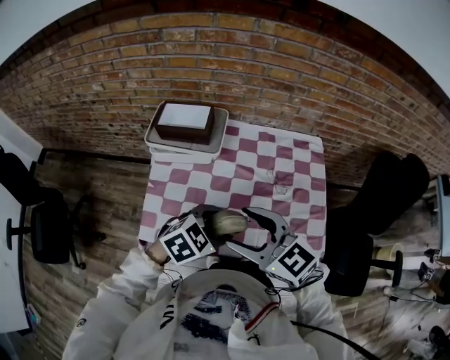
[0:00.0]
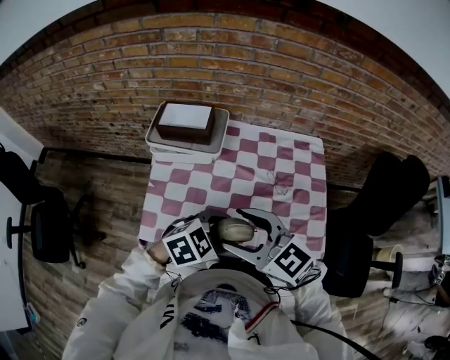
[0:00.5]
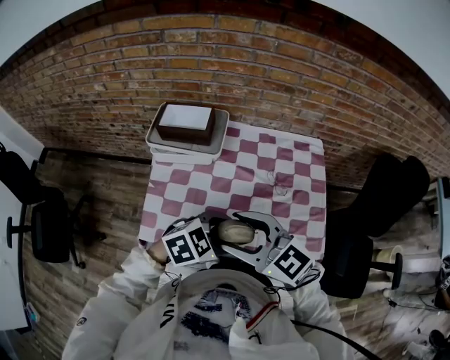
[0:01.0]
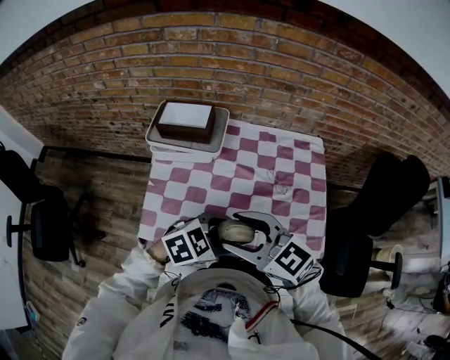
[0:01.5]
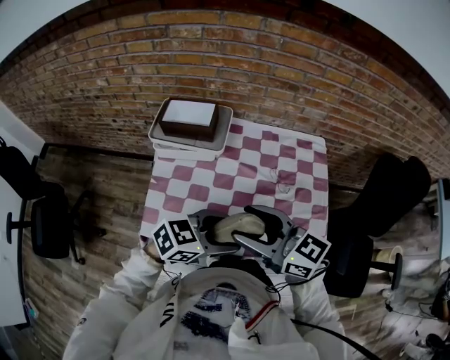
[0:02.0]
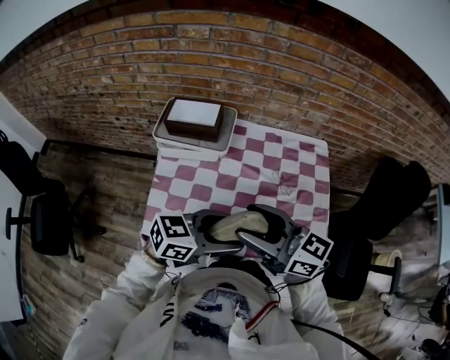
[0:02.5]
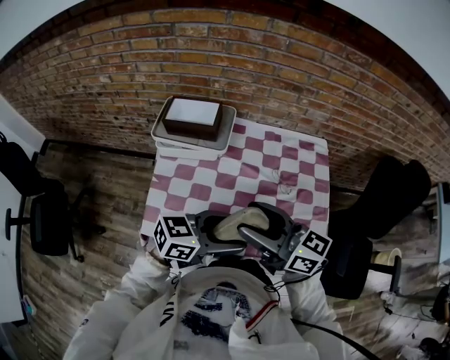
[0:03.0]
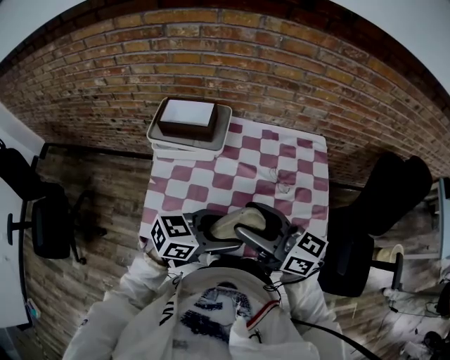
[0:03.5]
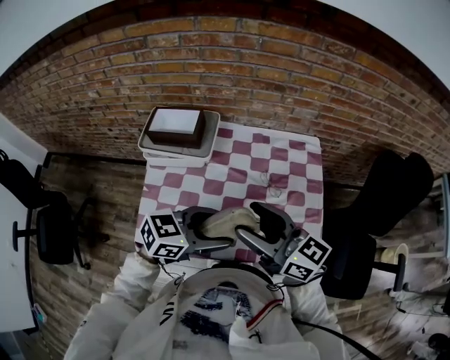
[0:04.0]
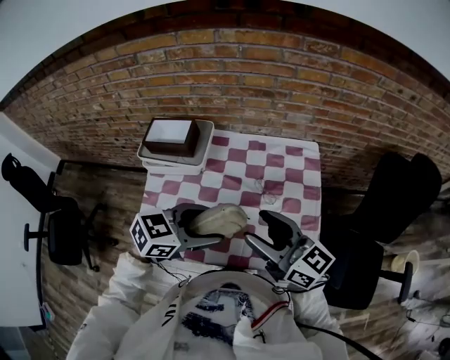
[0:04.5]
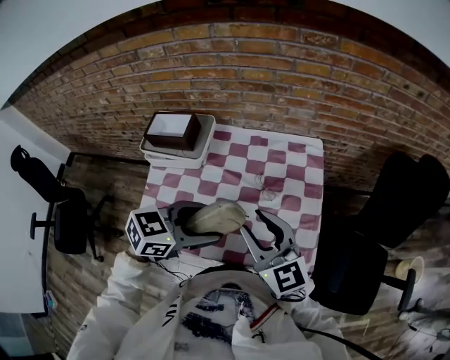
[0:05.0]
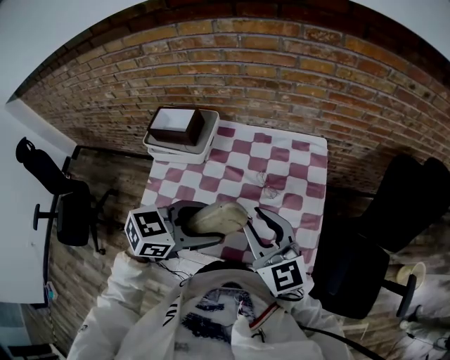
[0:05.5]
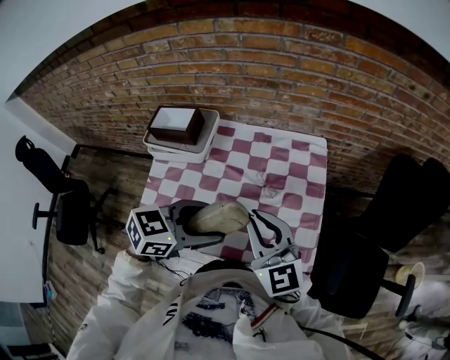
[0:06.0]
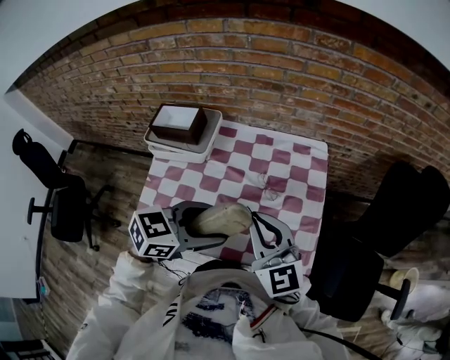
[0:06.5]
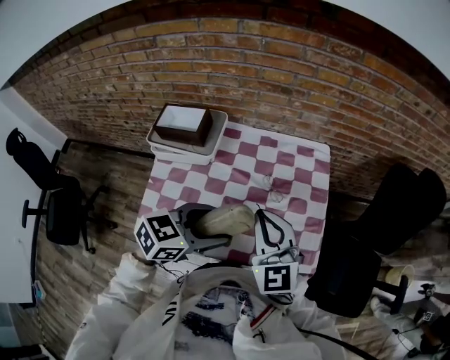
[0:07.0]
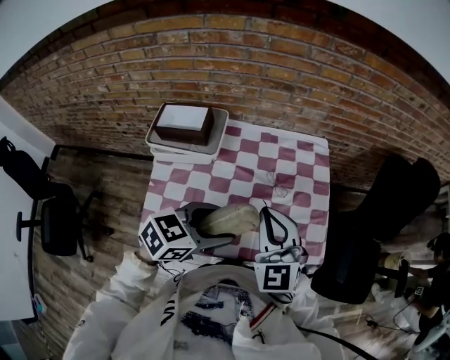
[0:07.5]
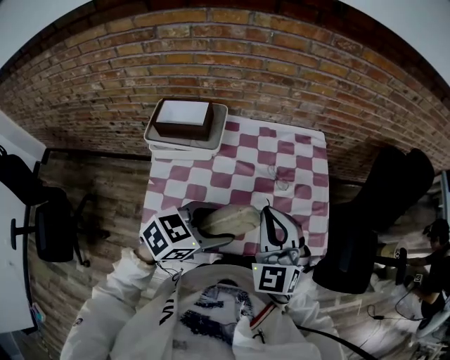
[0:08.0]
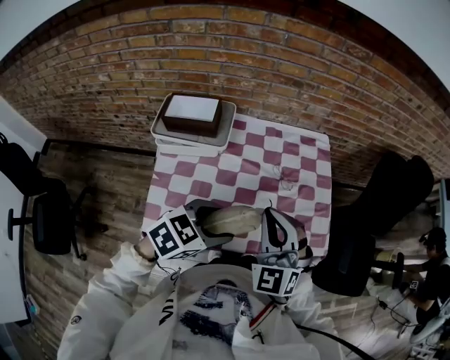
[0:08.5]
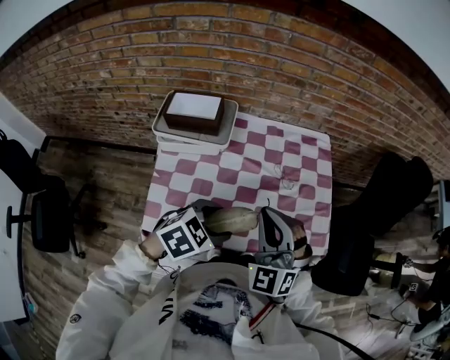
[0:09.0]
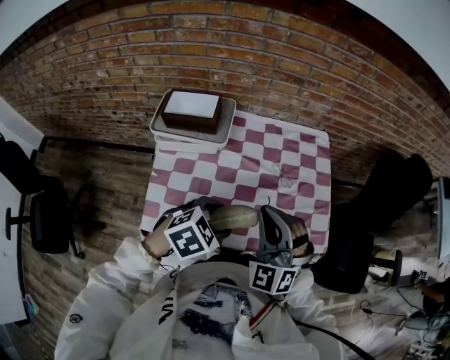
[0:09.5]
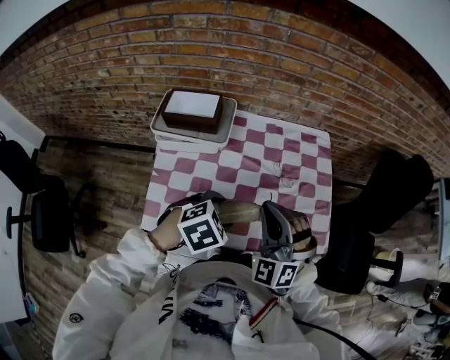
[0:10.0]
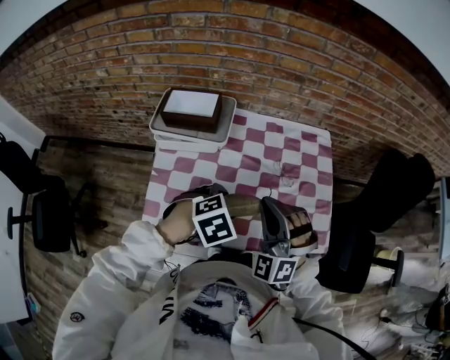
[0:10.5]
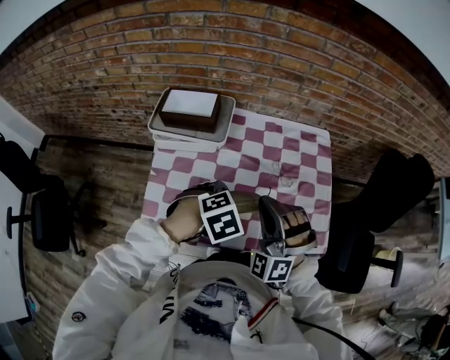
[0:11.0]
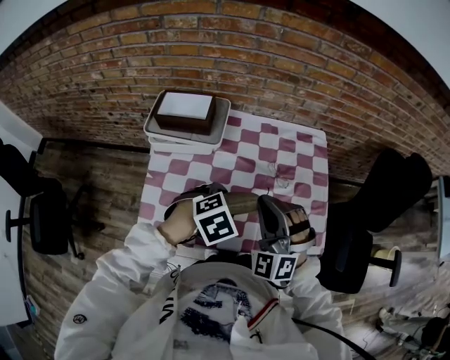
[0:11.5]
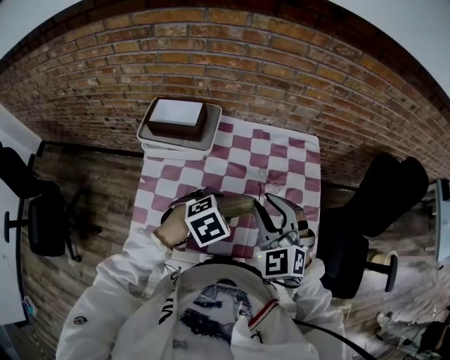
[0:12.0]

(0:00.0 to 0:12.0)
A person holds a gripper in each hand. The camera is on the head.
0:00.0 - 0:02.0: The left gripper changes place by roughly 5 cm, and rotates roughly 30 degrees.
0:02.0 - 0:04.0: The right gripper shifts by some 10 cm, while the left gripper ends up some 5 cm from where it was.
0:04.0 - 0:06.0: The left gripper changes place by some 10 cm, while the right gripper moves approximately 10 cm, swivels about 30 degrees, and closes its fingers.
0:06.0 - 0:08.0: The right gripper travels to the left by roughly 10 cm, and rotates approximately 40 degrees; the left gripper heads to the left and backward, covering approximately 10 cm.
0:08.0 - 0:10.0: The right gripper swivels roughly 30 degrees. The left gripper heads downward, covering approximately 5 cm, and turns by approximately 30 degrees.
0:10.0 - 0:12.0: Both grippers travel together forward, some 5 cm. The right gripper swivels approximately 20 degrees.

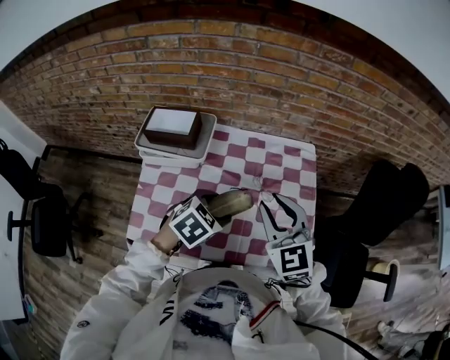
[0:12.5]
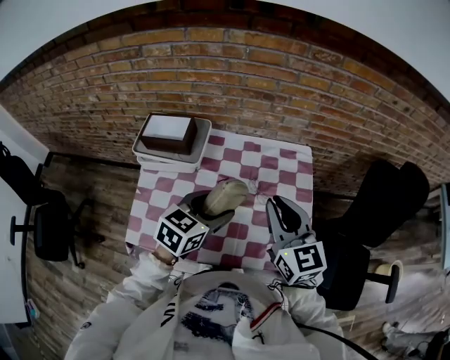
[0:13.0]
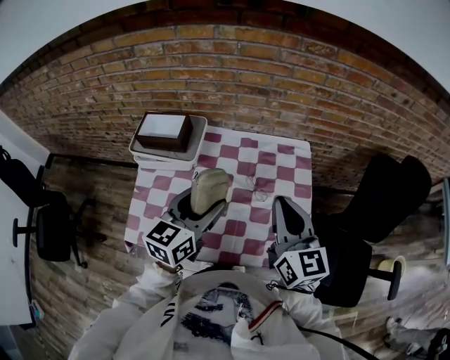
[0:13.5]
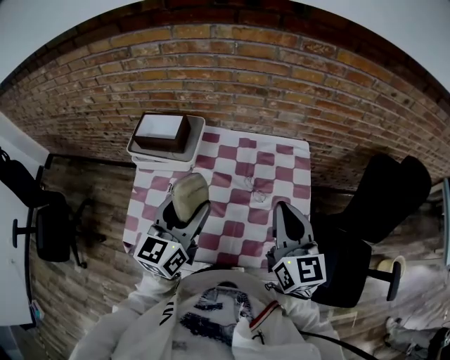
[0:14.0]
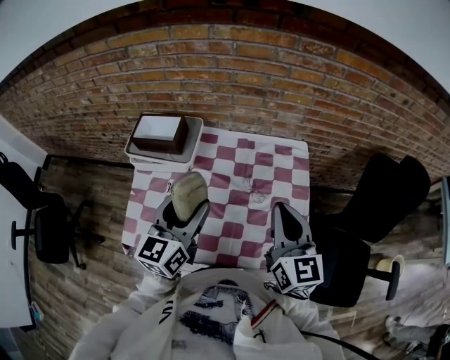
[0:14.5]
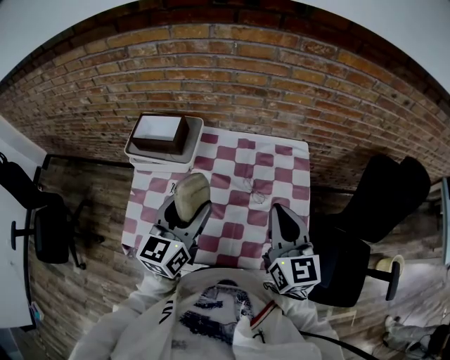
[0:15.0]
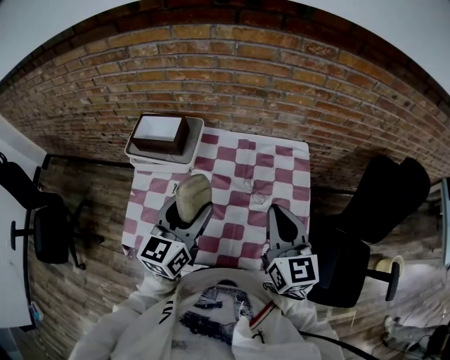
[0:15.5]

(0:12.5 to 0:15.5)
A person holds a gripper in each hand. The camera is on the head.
0:12.5 - 0:14.0: The left gripper shifts approximately 10 cm upward, and tilts its fingers about 50 degrees upward; the right gripper goes about 10 cm to the right, and rotates some 30 degrees.
0:14.0 - 0:15.5: The grippers make only small movements.

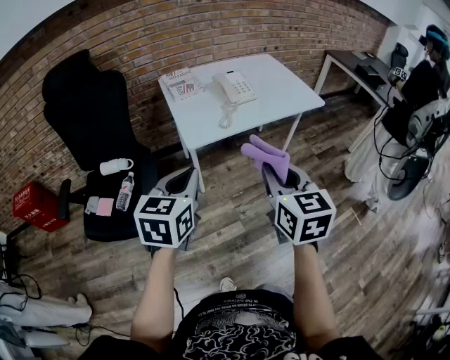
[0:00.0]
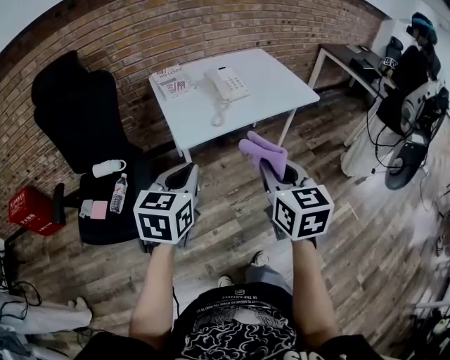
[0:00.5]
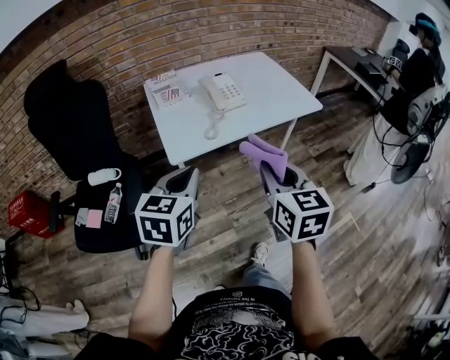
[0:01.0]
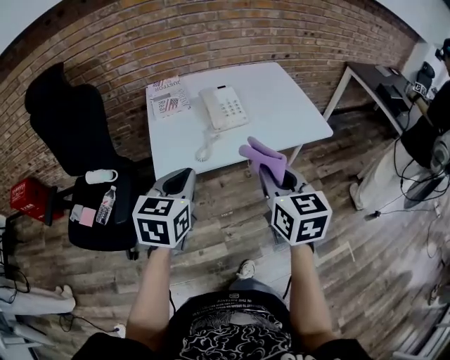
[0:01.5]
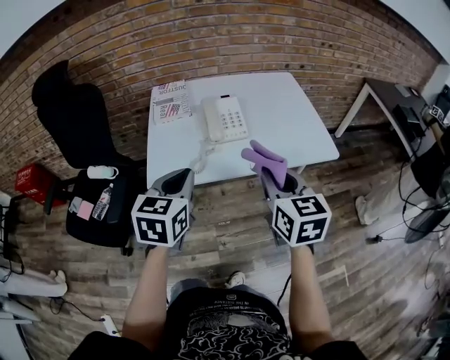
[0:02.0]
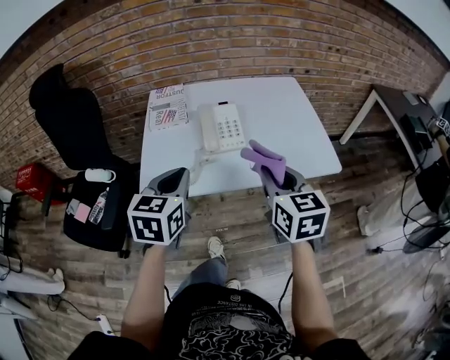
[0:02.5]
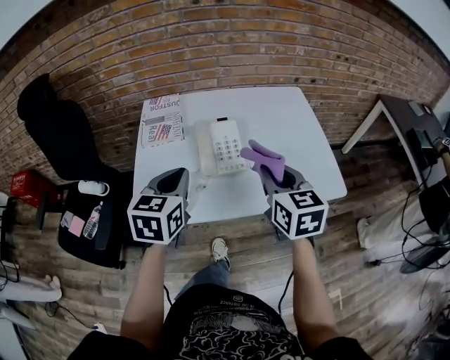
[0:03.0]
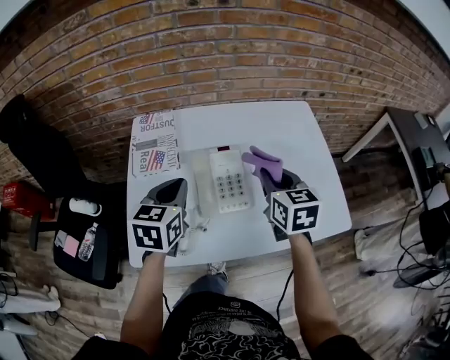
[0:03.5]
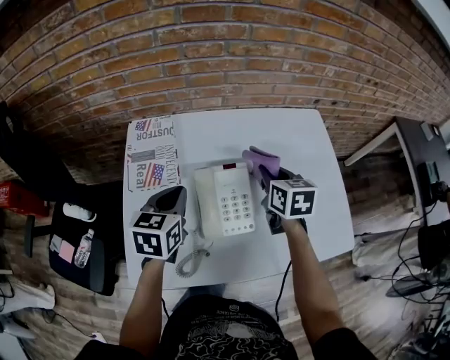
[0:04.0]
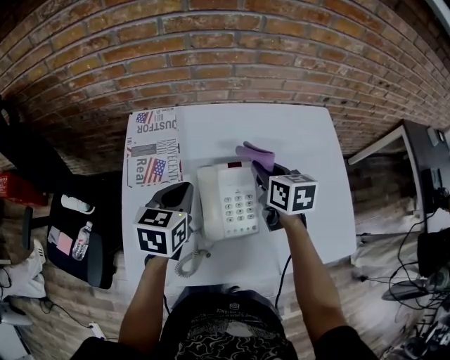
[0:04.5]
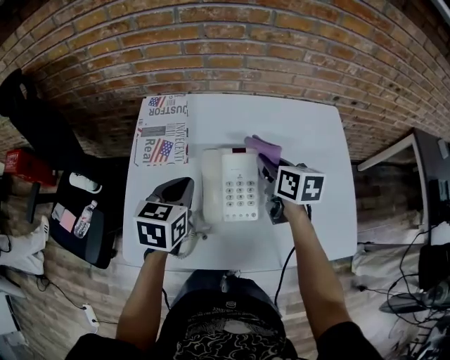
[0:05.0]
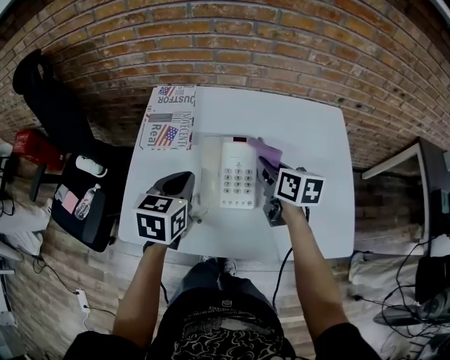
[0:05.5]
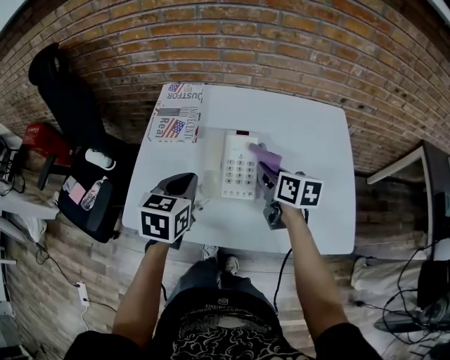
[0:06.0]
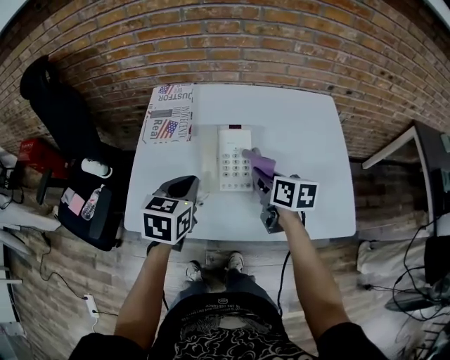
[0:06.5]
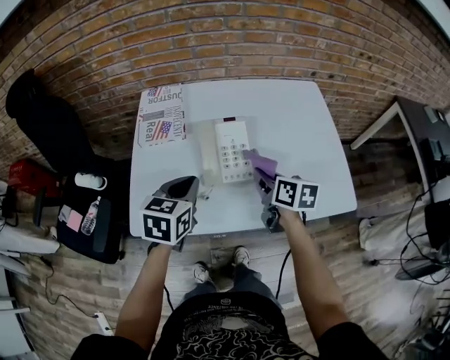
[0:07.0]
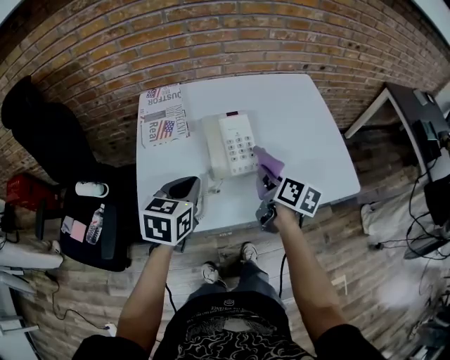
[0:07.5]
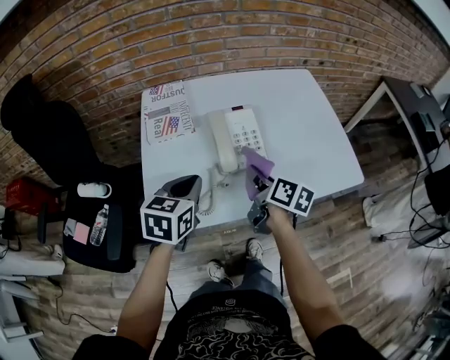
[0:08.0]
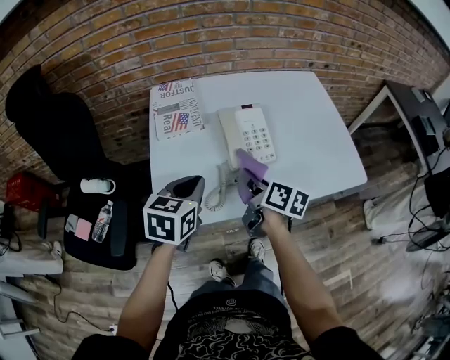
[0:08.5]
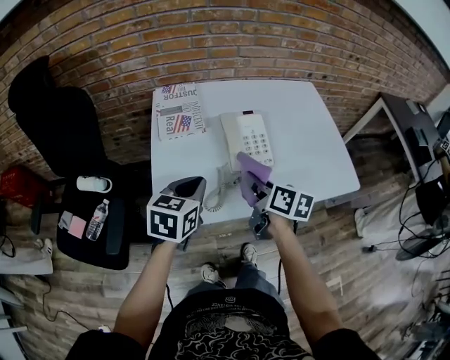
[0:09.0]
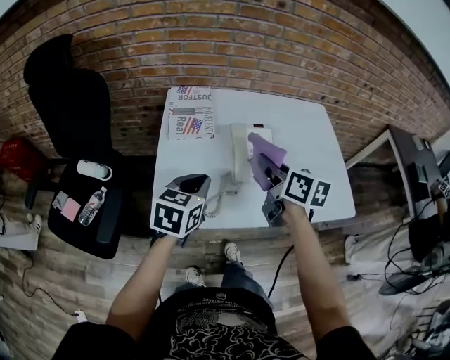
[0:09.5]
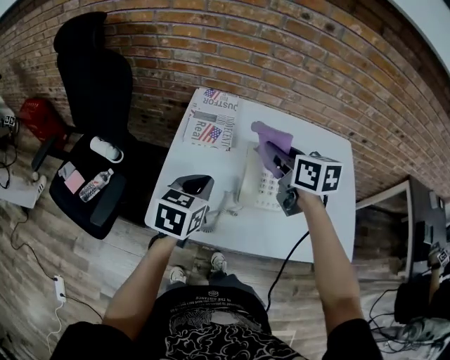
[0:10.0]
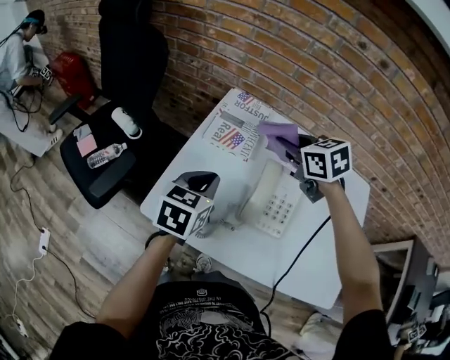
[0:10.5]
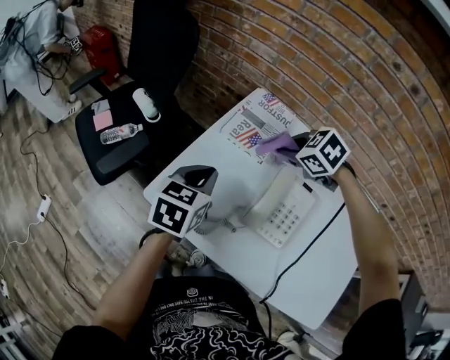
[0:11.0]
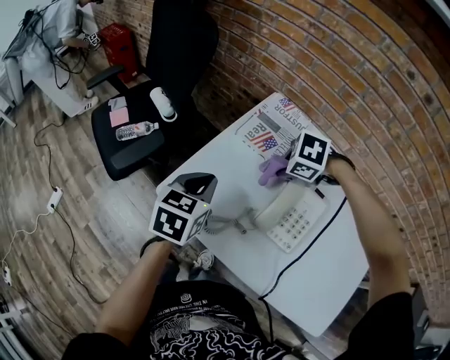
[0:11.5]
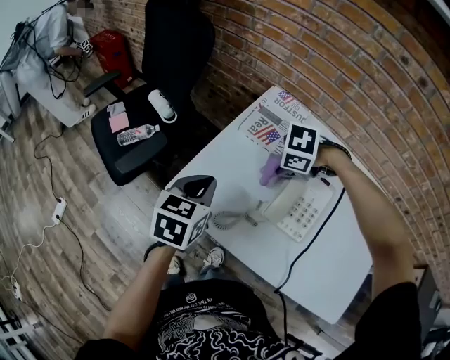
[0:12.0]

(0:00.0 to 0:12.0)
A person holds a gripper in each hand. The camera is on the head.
0:00.0 - 0:02.0: Both grippers travel together forward and to the right, about 30 cm.
0:02.0 - 0:04.0: The grippers both shift forward by about 40 cm.
0:04.0 - 0:06.0: Both grippers travel together backward, about 10 cm. The right gripper turns by approximately 20 degrees.
0:06.0 - 0:08.0: The left gripper travels backward and to the left by roughly 10 cm, and changes its angle by approximately 20 degrees. Meanwhile the right gripper heads backward and to the left, covering about 15 cm, and turns by approximately 30 degrees.
0:08.0 - 0:10.0: The left gripper shifts by roughly 5 cm. Meanwhile the right gripper goes roughly 20 cm upward, forward and to the left, and rotates around the line of its fingers by about 40 degrees, counterclockwise from behind.
0:10.0 - 0:12.0: The right gripper heads downward, covering some 15 cm, and angles its fingers downward, by roughly 50 degrees; the left gripper moves roughly 10 cm, and turns by approximately 30 degrees.
